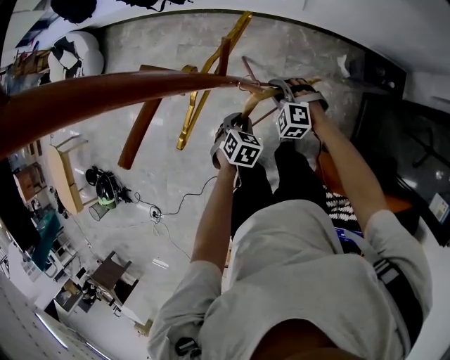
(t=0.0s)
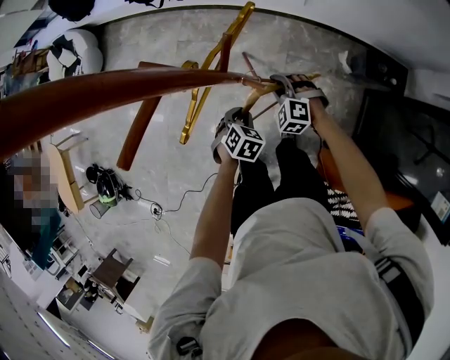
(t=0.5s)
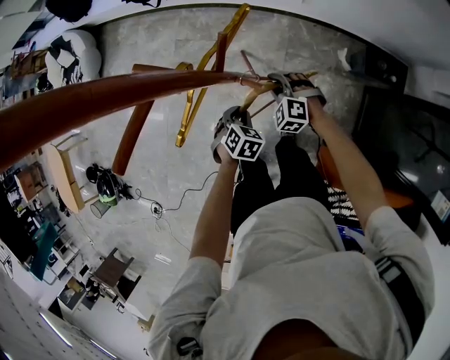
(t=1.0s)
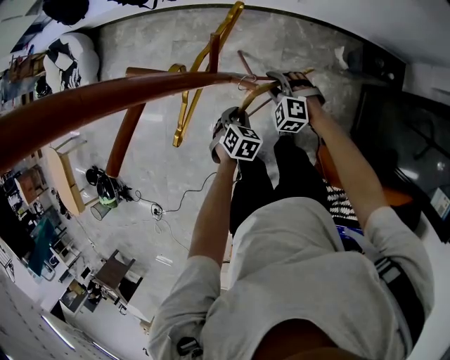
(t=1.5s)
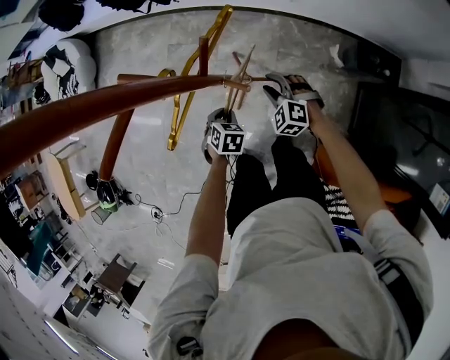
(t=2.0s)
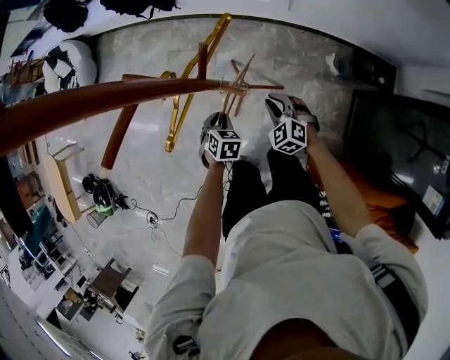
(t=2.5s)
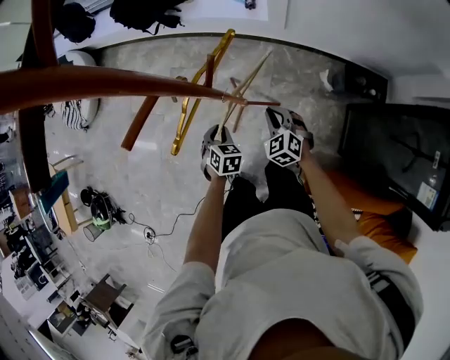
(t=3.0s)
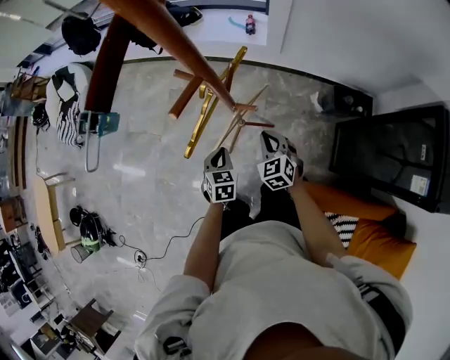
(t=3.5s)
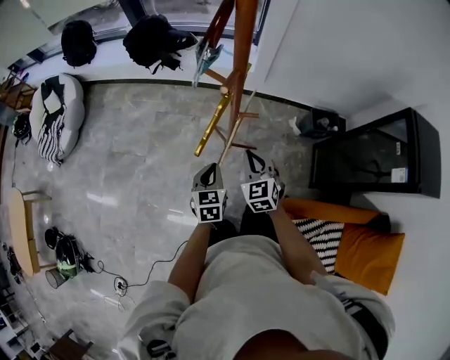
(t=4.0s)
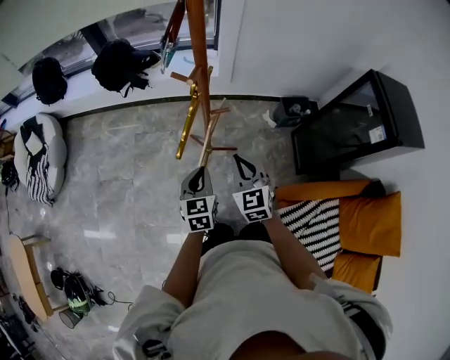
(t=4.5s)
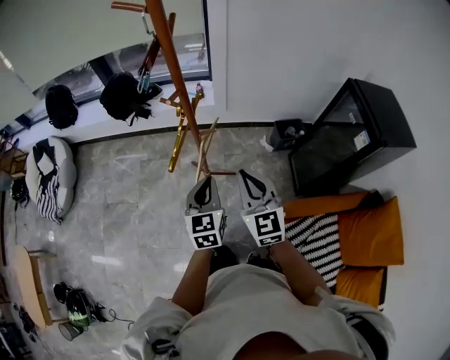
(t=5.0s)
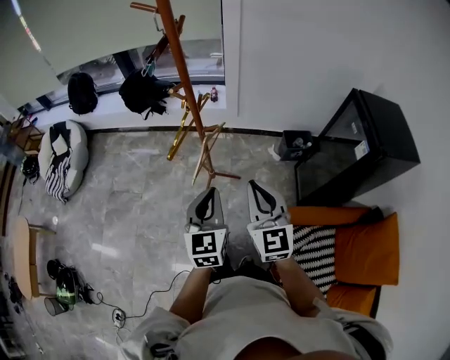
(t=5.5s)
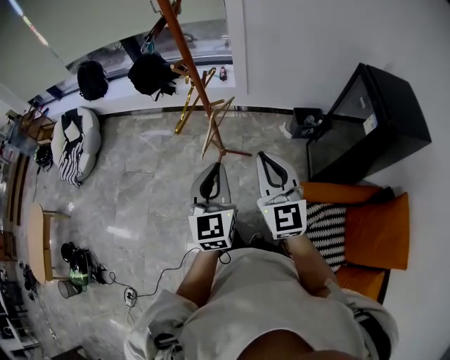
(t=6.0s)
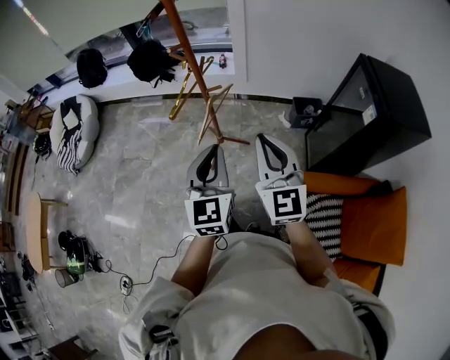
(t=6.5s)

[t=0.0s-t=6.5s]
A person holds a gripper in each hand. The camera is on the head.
t=0.0s to t=2.0s: The grippers stay close to where they were, moving slightly.
t=2.0s to t=4.5s: Both grippers travel together upward, about 25 cm. The left gripper points its fingers roughly 40 degrees further upward, while the right gripper swivels about 50 degrees, and closes its fingers.
t=4.5s to t=6.5s: Both grippers move upward, backward and to the right, some 30 cm. The left gripper changes its angle by approximately 30 degrees, while the right gripper rotates approximately 30 degrees.

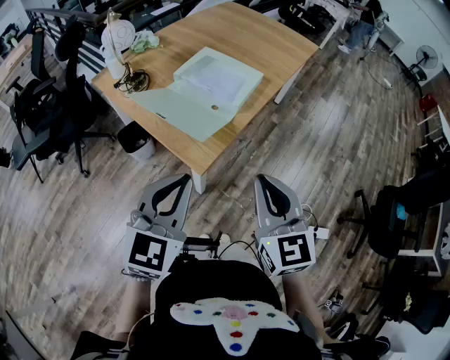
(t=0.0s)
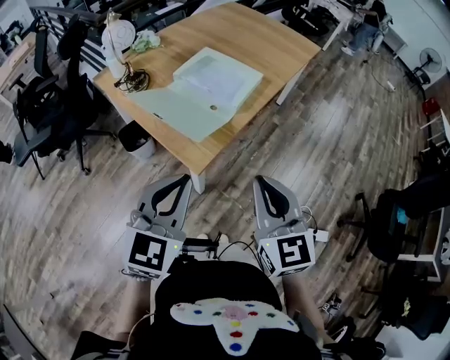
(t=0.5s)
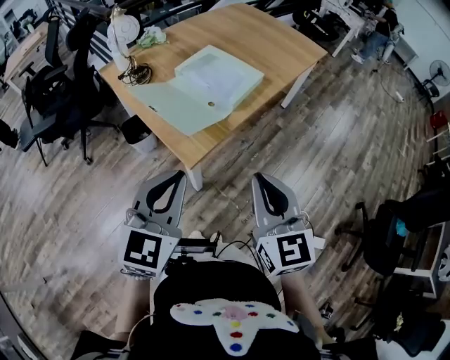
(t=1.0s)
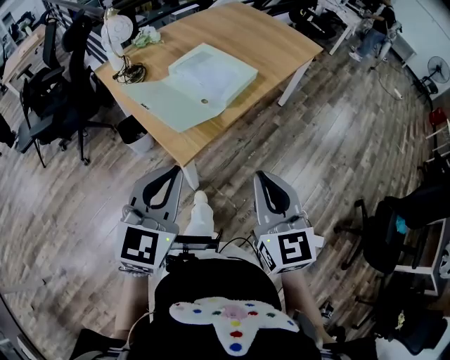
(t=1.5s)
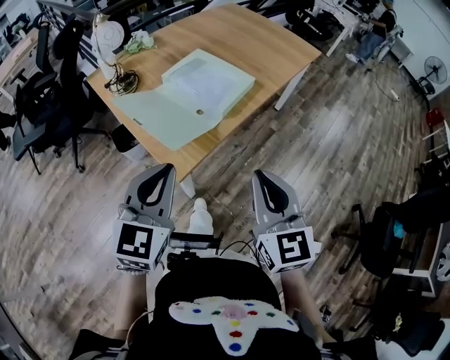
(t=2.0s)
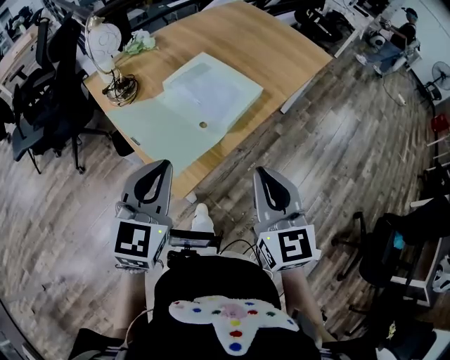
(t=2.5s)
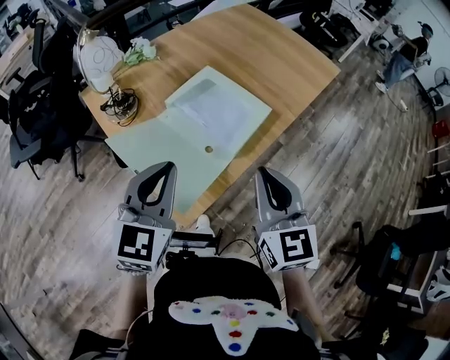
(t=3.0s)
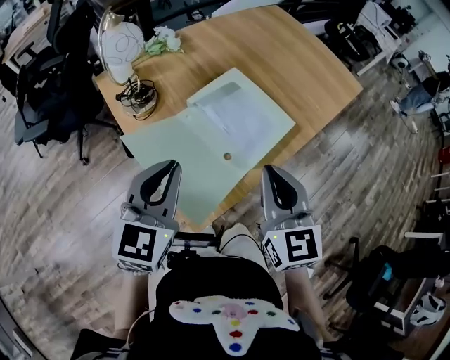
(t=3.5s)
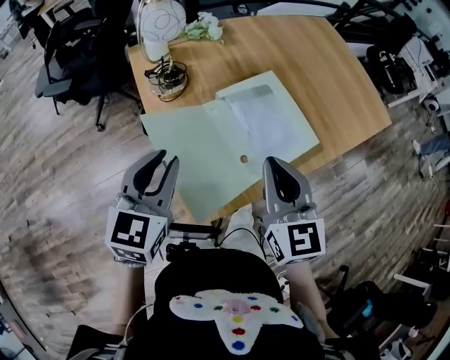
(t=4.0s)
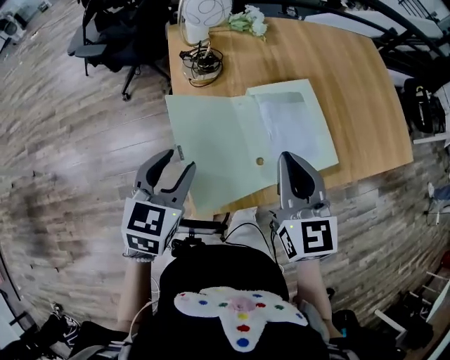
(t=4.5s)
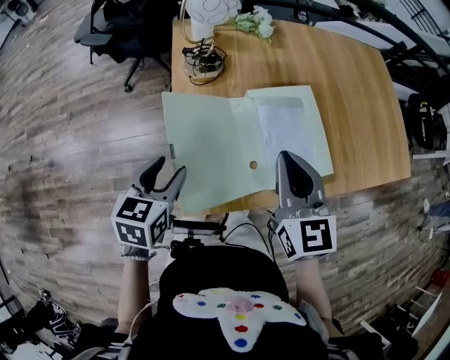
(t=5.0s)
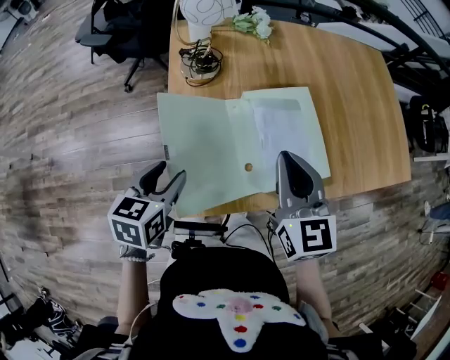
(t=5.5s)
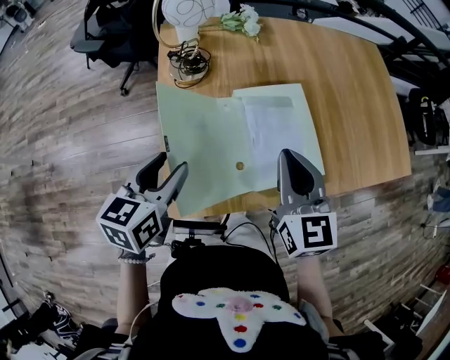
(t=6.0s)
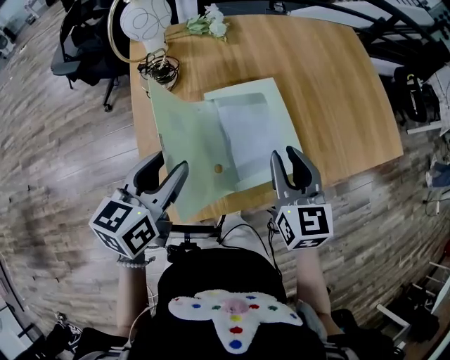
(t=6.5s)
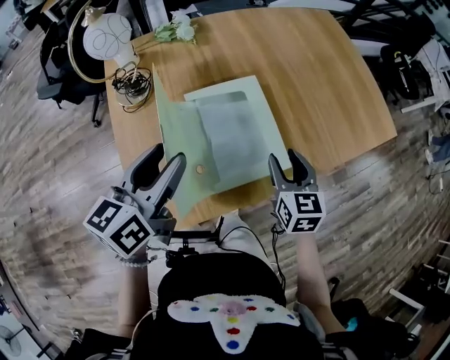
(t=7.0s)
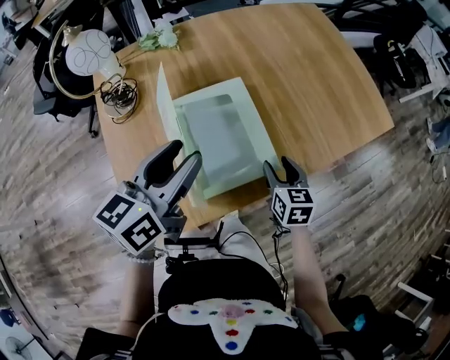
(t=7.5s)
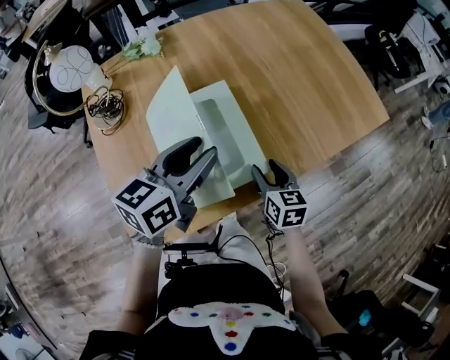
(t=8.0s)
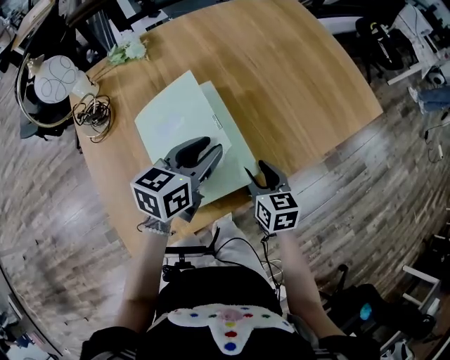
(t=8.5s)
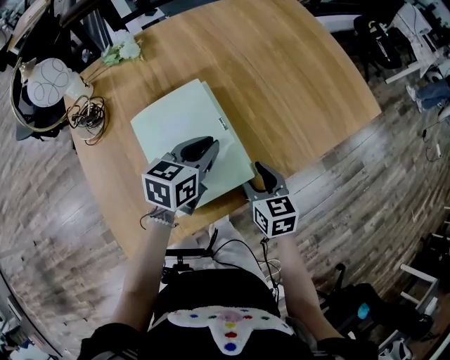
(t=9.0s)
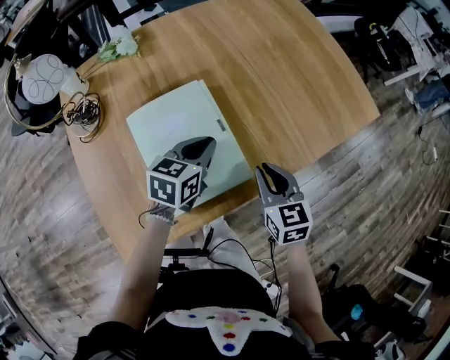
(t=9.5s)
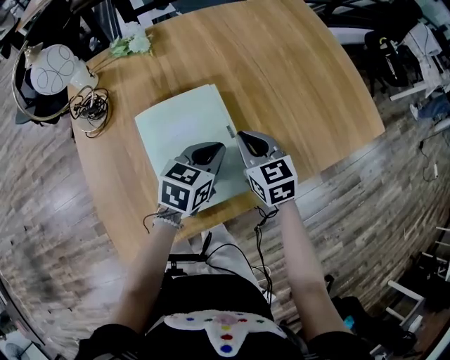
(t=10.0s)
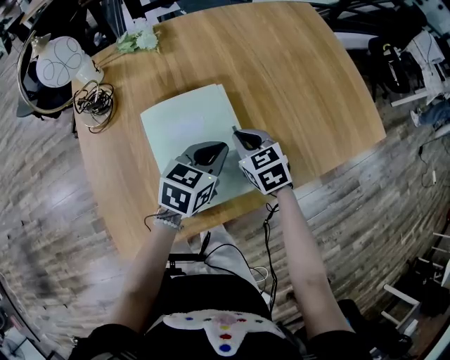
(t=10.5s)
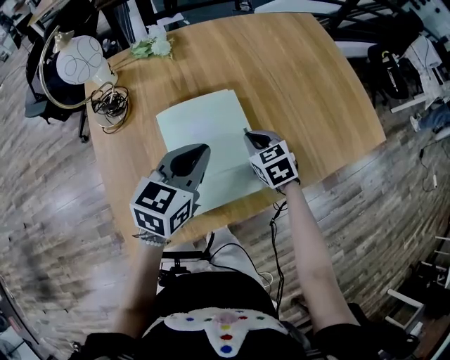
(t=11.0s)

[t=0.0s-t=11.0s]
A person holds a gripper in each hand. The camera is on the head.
t=0.0s to t=2.0s: The left gripper shifts by about 5 cm. The right gripper moves to the right, some 10 cm.
t=2.0s to t=3.5s: The grippers both shift forward by approximately 25 cm.
t=3.5s to t=5.5s: The right gripper moves some 10 cm, and changes its angle by roughly 30 degrees; the left gripper moves downward, some 15 cm, turns by roughly 40 degrees, and opens its fingers.
t=5.5s to t=7.5s: The right gripper moves to the right and downward, about 30 cm, swivels roughly 30 degrees, and opens up. Meanwhile the left gripper shifts roughly 30 cm to the right, forward and upward, and changes its angle by roughly 30 degrees.
t=7.5s to t=9.0s: The left gripper moves downward, to the right and forward, approximately 20 cm, turns by roughly 20 degrees, and closes.
t=9.0s to t=11.0s: The right gripper goes some 15 cm forward and to the left, turns by approximately 30 degrees, and closes up. Meanwhile the left gripper moves to the left and upward, about 10 cm.

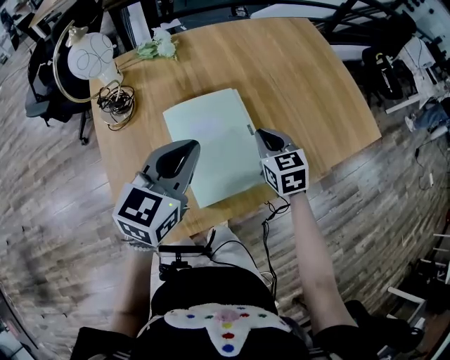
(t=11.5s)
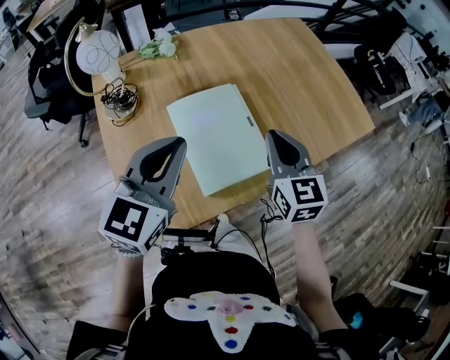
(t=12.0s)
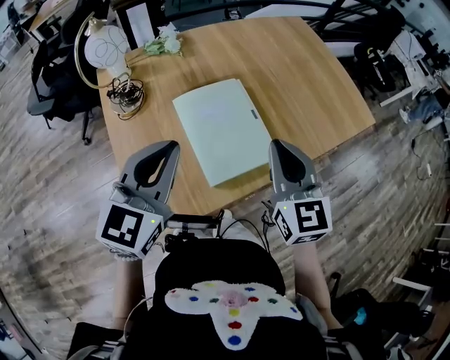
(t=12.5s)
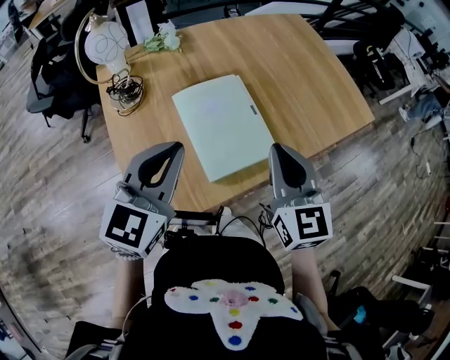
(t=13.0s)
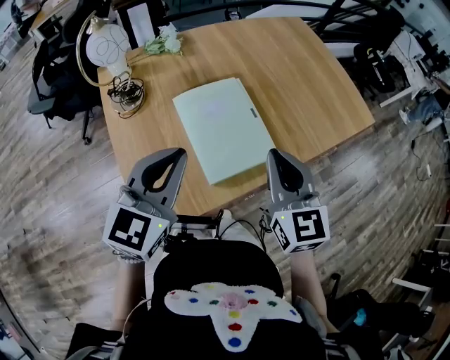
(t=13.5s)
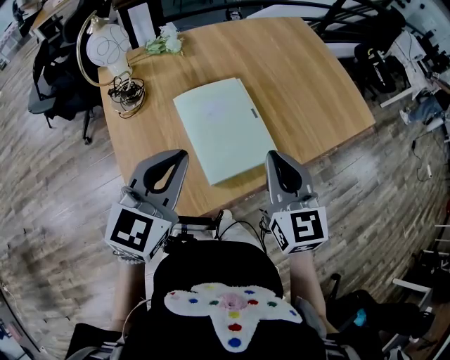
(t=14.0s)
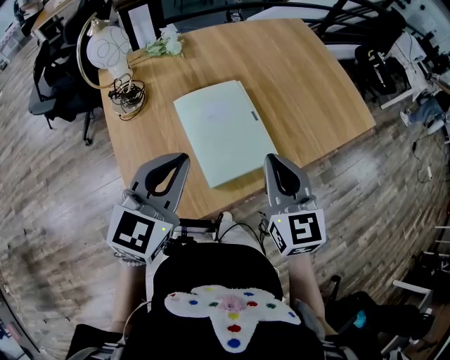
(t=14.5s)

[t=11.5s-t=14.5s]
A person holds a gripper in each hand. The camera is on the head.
t=11.5s to t=13.0s: The right gripper moves backward and upward, approximately 25 cm, and swivels approximately 20 degrees; the left gripper is displaced backward and upward by approximately 10 cm.
t=13.0s to t=14.5s: The grippers move only a little.

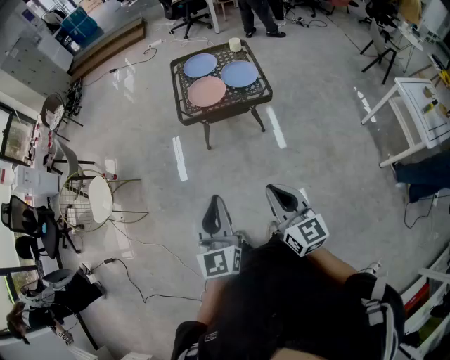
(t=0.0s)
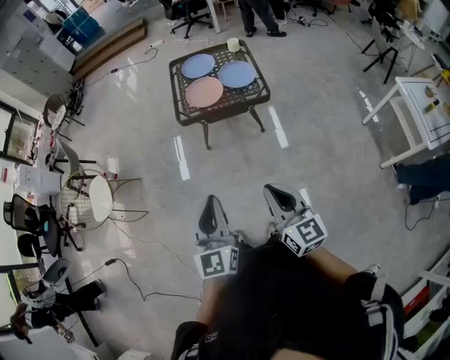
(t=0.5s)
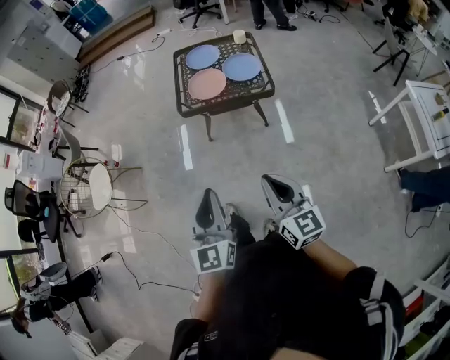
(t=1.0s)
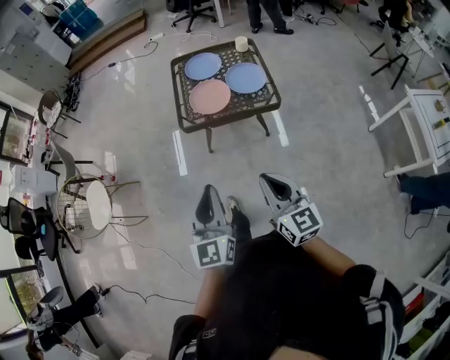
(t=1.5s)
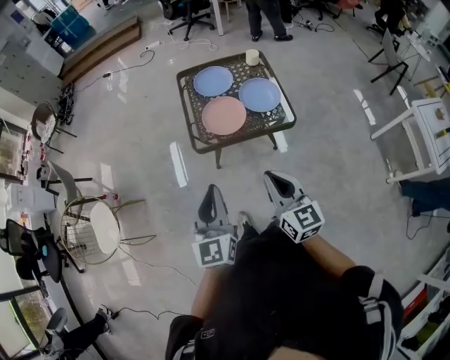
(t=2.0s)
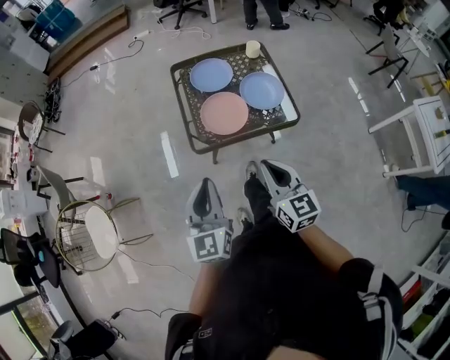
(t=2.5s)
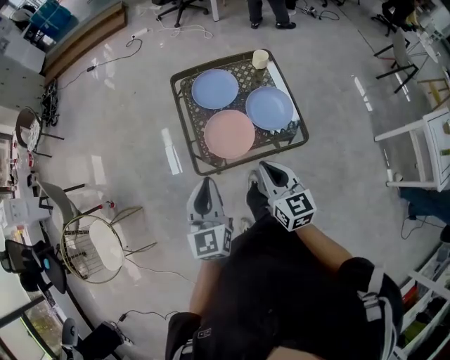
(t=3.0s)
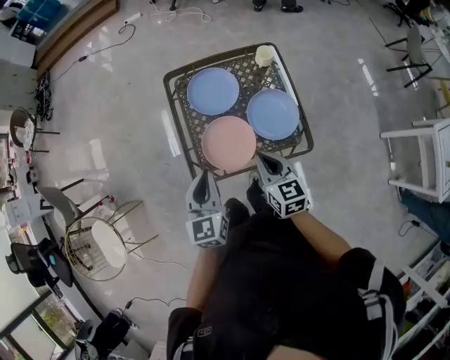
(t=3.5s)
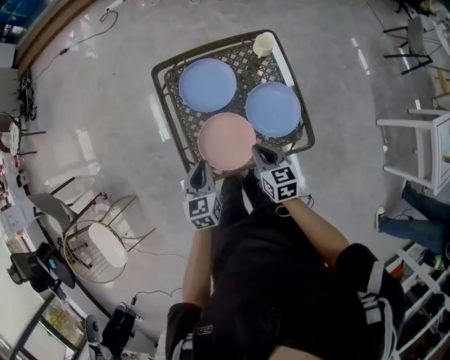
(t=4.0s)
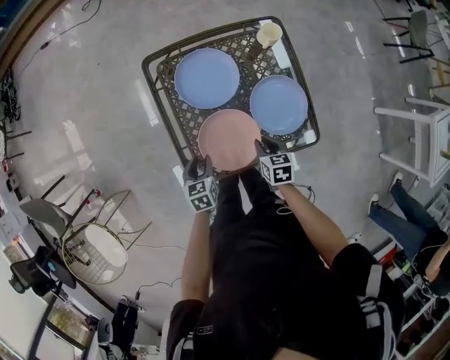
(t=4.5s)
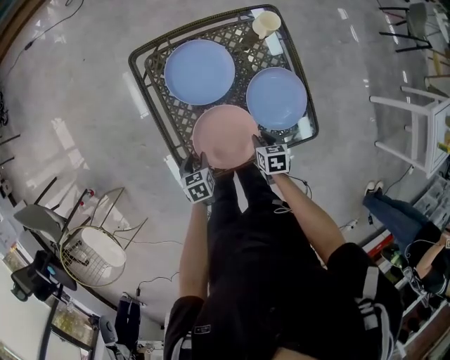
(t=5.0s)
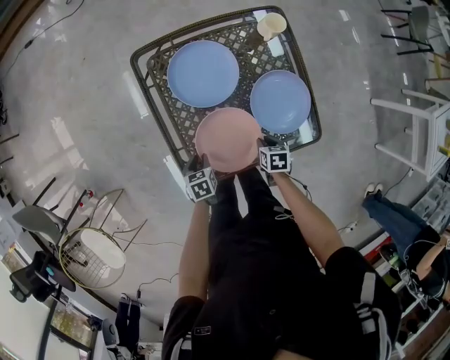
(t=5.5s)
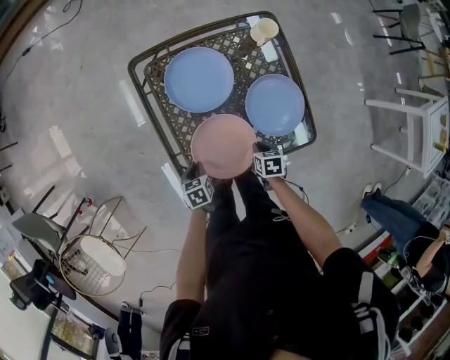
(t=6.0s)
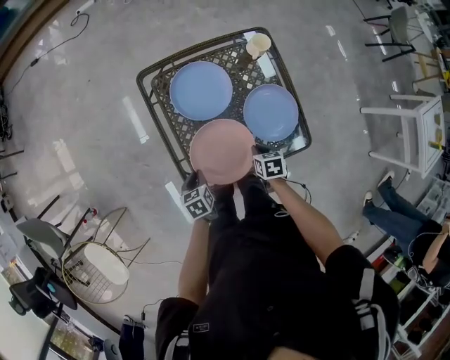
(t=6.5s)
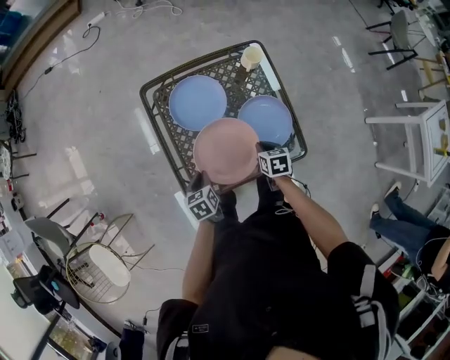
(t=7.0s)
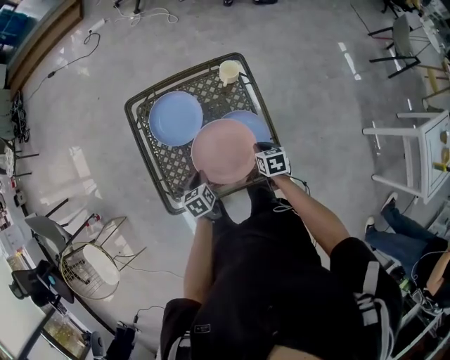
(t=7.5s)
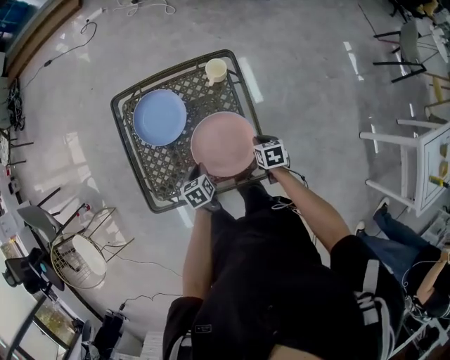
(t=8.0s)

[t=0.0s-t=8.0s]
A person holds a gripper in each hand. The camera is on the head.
t=0.0s to t=2.0s: The two grippers go roughly 30 cm forward.
t=2.0s to t=4.0s: The pair of grippers is taken forward, approximately 40 cm. Both grippers move downward, approximately 25 cm. The right gripper swivels about 30 degrees. The left gripper angles its fingers downward, by about 30 degrees.
t=4.0s to t=6.0s: The two grippers go some 25 cm downward. The left gripper turns by about 30 degrees, and opens, then closes once more; the right gripper points its fingers roughly 30 degrees further downward.
t=6.0s to t=8.0s: The right gripper moves to the right and forward, about 25 cm; the left gripper moves to the right, some 25 cm.
